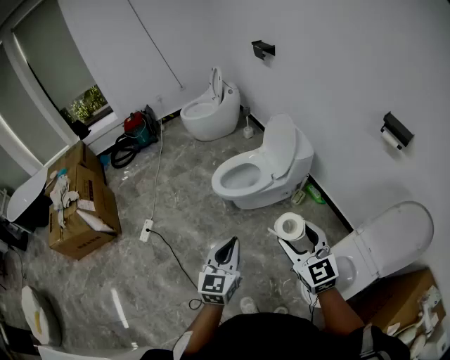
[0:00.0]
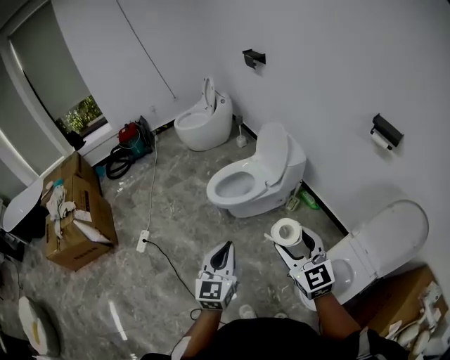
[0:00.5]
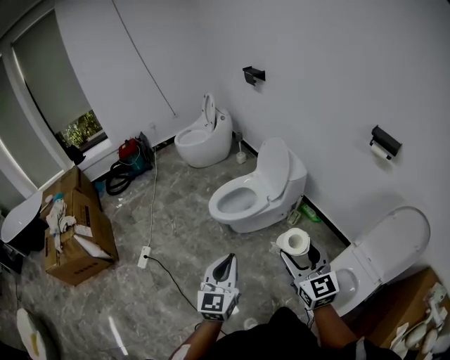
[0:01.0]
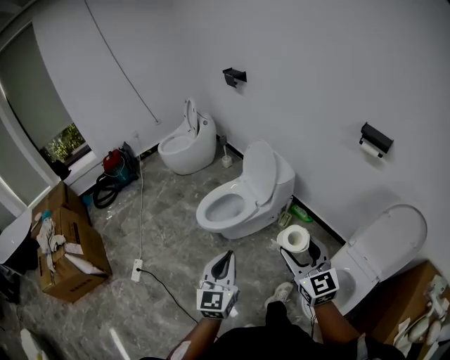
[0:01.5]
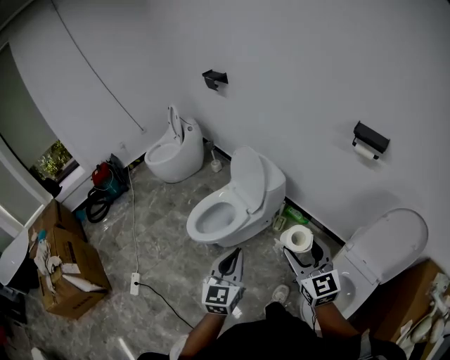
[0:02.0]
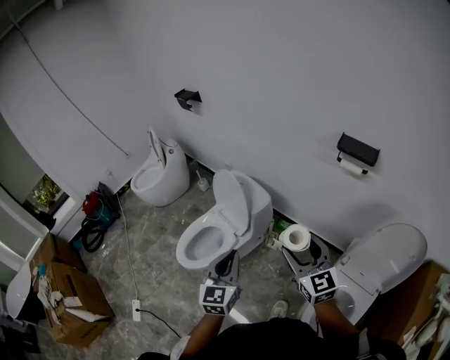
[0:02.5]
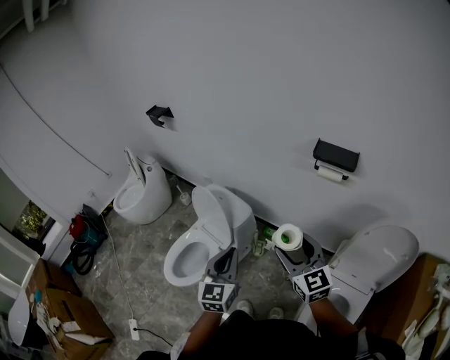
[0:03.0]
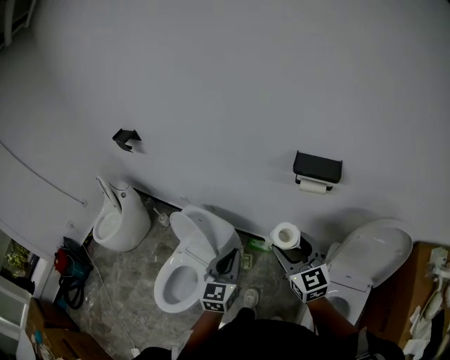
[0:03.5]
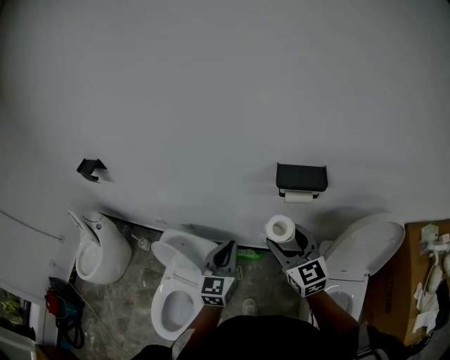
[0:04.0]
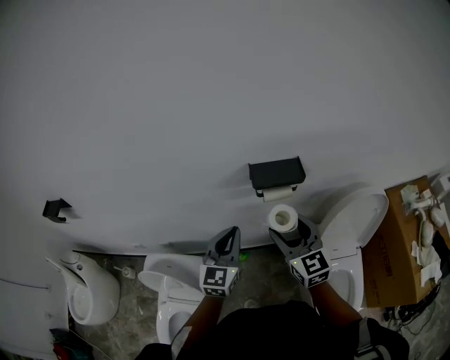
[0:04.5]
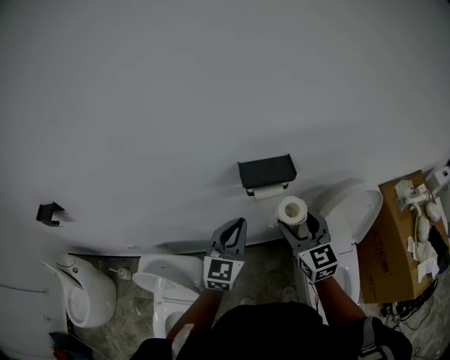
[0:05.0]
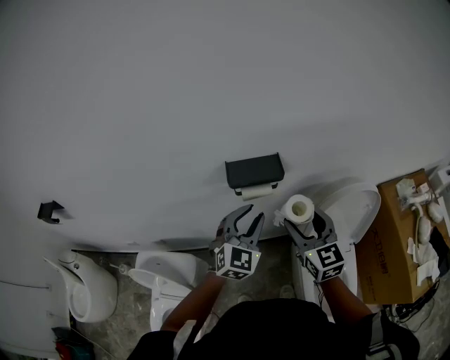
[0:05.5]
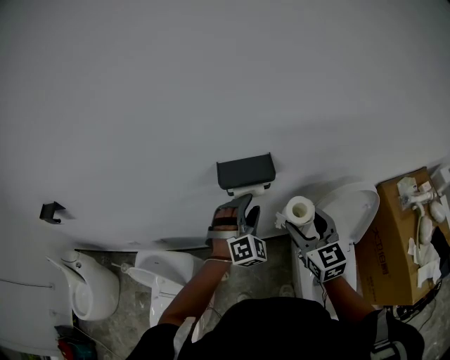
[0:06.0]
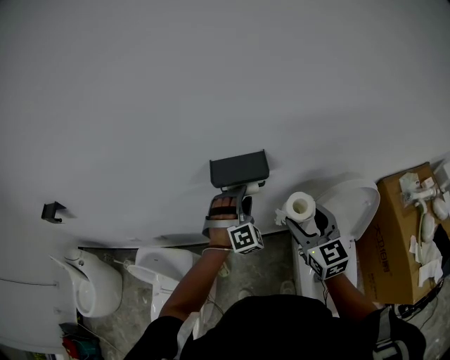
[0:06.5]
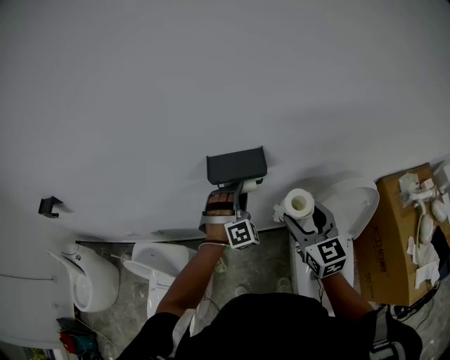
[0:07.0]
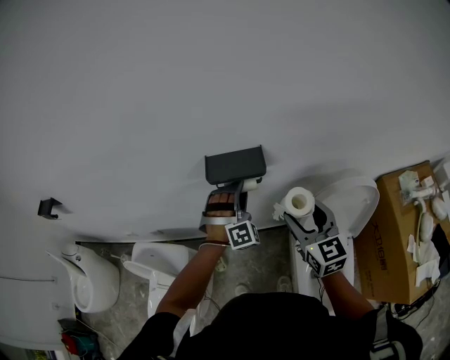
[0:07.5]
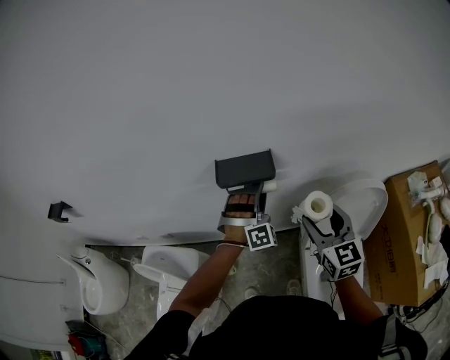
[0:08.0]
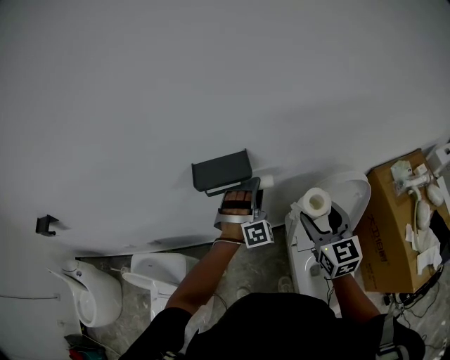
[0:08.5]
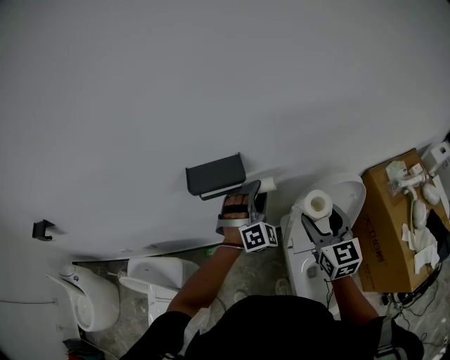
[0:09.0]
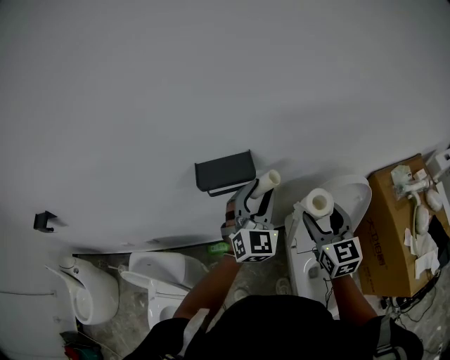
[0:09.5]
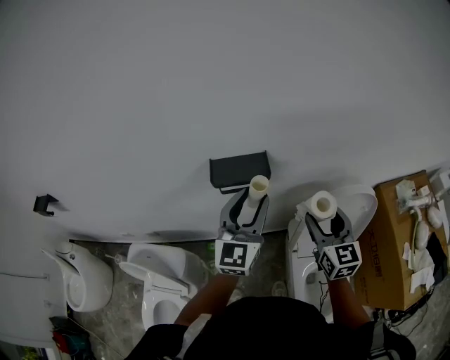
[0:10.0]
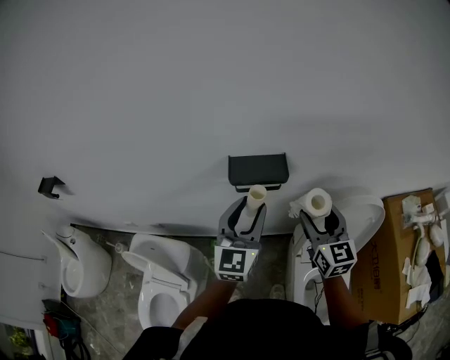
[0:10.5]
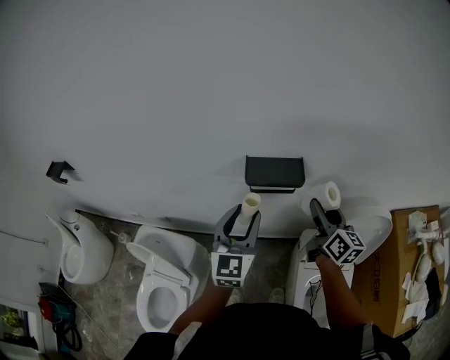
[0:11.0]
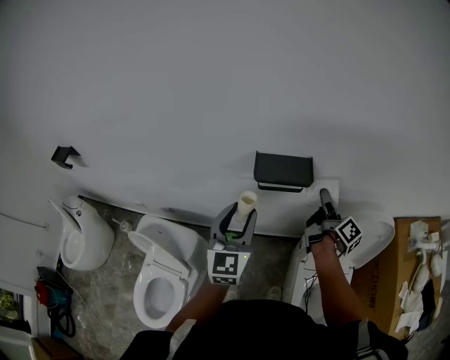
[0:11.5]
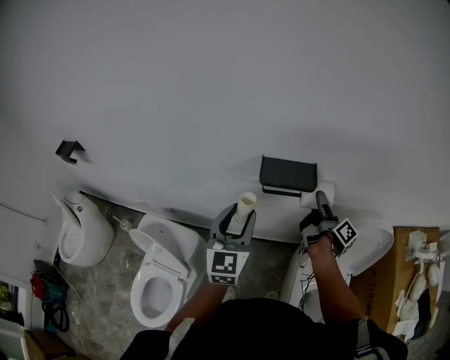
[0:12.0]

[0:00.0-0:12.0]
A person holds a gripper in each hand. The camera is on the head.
0:00.0 to 0:02.0: The left gripper travels forward and to the right by about 20 cm. The right gripper is displaced to the right and forward by some 15 cm, and changes its angle by some 20 degrees.
0:02.0 to 0:04.0: Both grippers are carried some 50 cm. The left gripper changes its angle by some 40 degrees. The right gripper turns by some 30 degrees.
0:04.0 to 0:06.0: The right gripper shifts roughly 20 cm to the right, and swivels about 20 degrees. Meanwhile the left gripper heads to the right and forward, covering roughly 25 cm, rotates around the line of its fingers by roughly 70 degrees, clockwise from behind, and opens its fingers.
0:06.0 to 0:08.0: The right gripper shifts some 5 cm to the right. Meanwhile the left gripper changes place by some 5 cm.
0:08.0 to 0:10.0: The left gripper is displaced upward and backward by some 15 cm, and rotates around the line of its fingers by roughly 70 degrees, counterclockwise from behind.
0:10.0 to 0:12.0: The right gripper moves forward, to the left and downward, some 15 cm, and rotates around the line of its fingers by about 80 degrees, clockwise from behind; the left gripper moves to the left, about 15 cm, and turns by some 20 degrees.

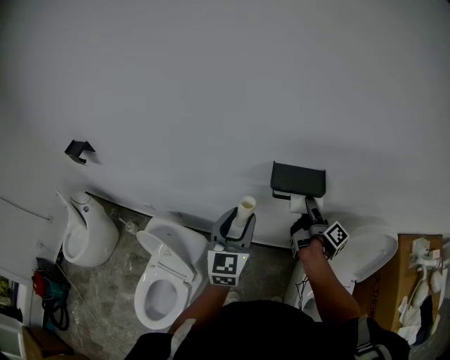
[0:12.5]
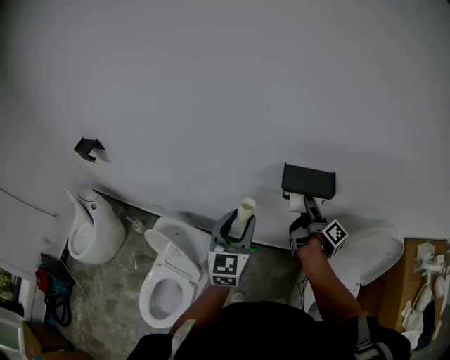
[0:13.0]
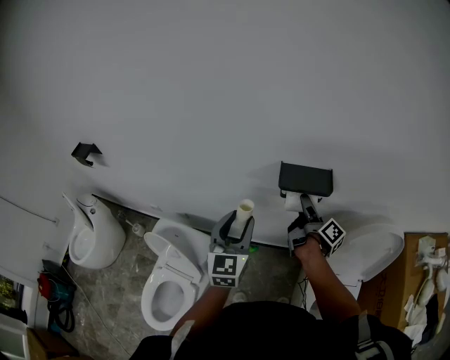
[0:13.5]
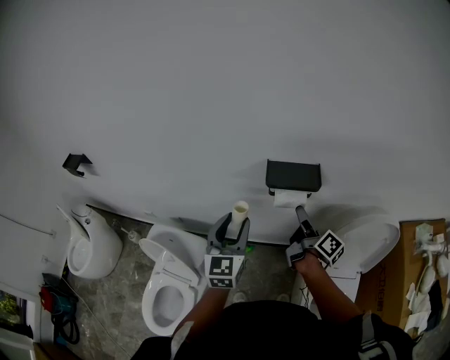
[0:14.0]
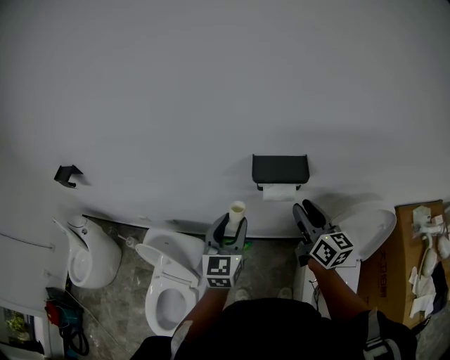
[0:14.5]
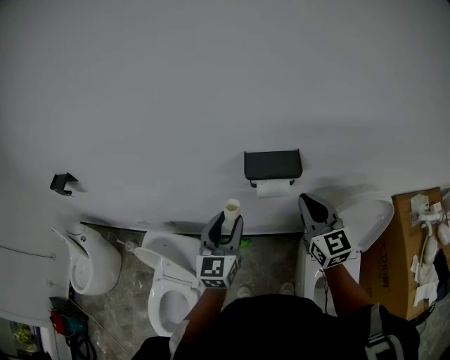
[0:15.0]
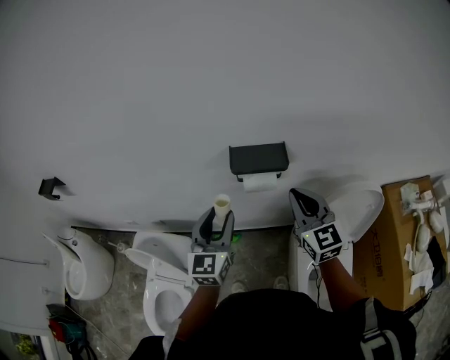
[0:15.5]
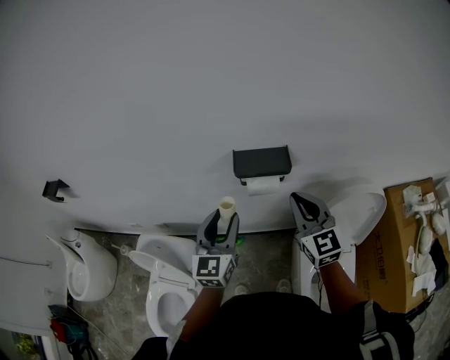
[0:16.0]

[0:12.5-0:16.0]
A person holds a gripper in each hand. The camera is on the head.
0:12.5 to 0:14.5: The right gripper goes about 10 cm backward and upward, and twists about 60 degrees counterclockwise, seen from behind.
0:14.5 to 0:16.0: The right gripper swivels about 40 degrees, and closes up.

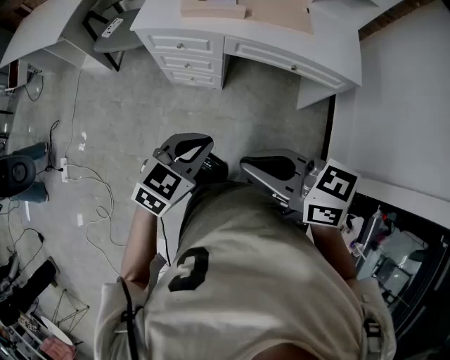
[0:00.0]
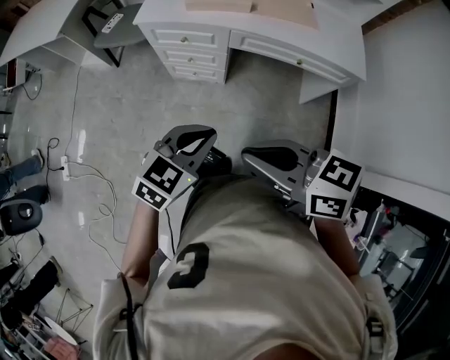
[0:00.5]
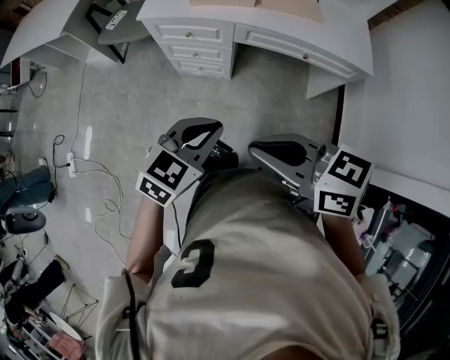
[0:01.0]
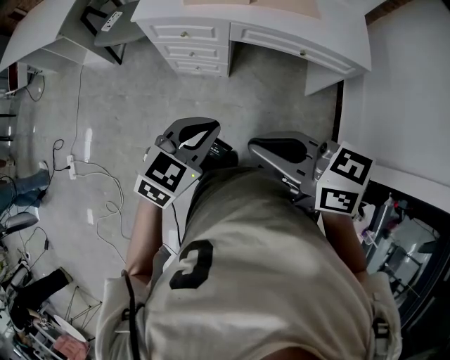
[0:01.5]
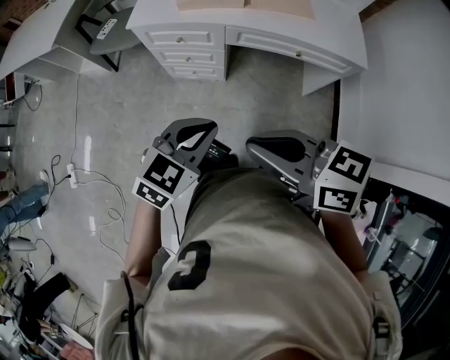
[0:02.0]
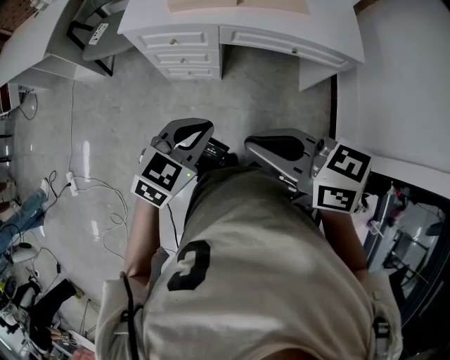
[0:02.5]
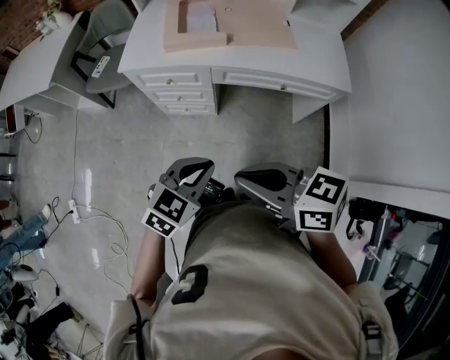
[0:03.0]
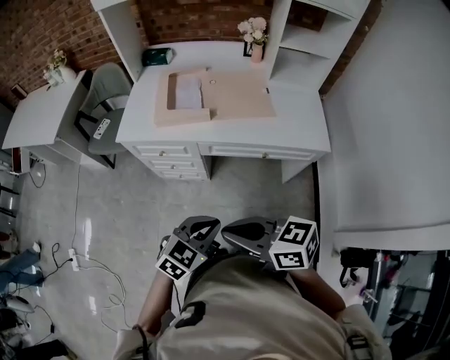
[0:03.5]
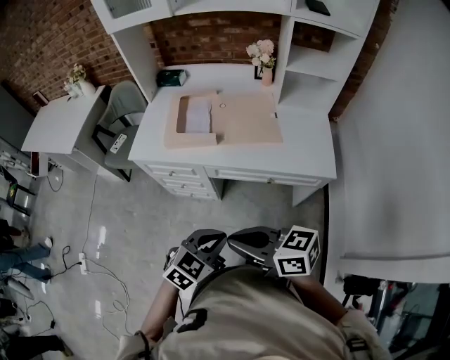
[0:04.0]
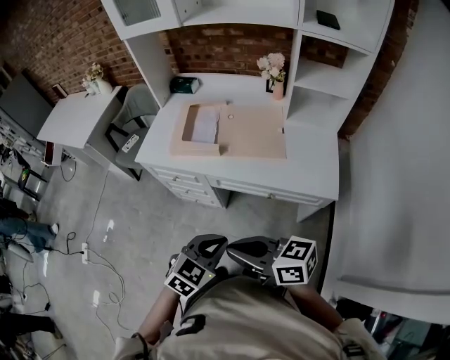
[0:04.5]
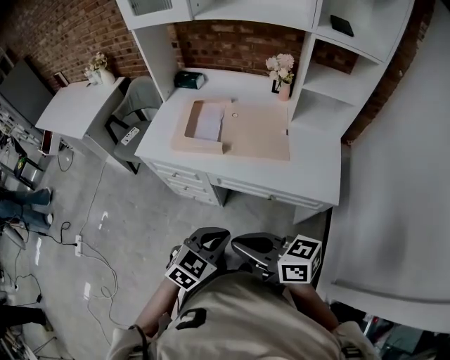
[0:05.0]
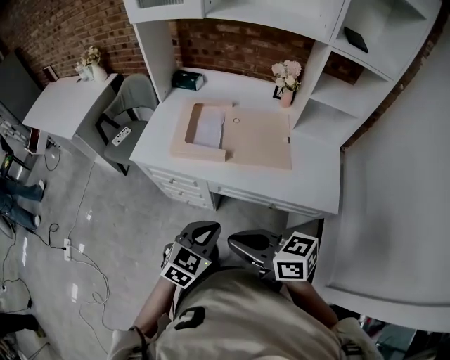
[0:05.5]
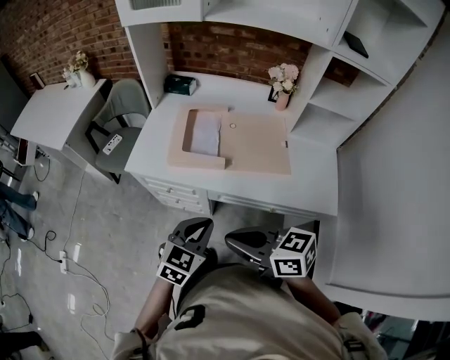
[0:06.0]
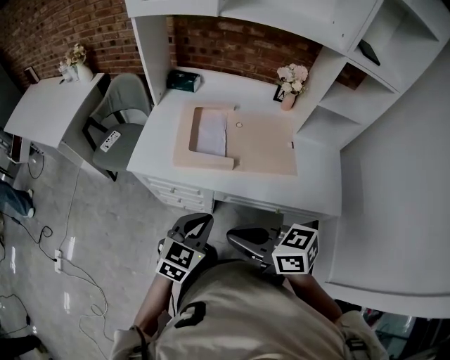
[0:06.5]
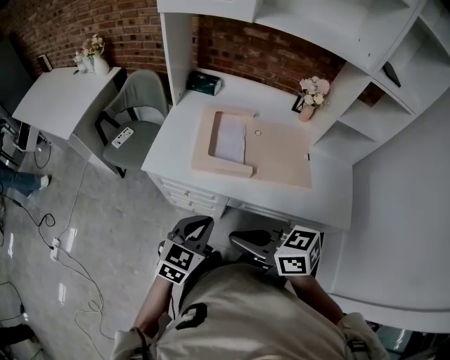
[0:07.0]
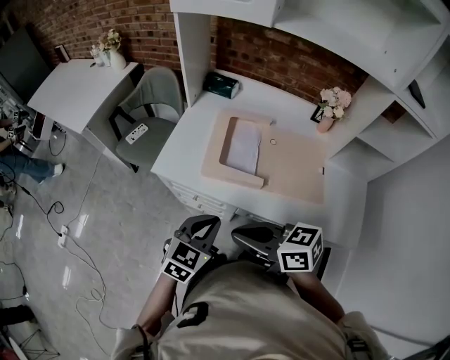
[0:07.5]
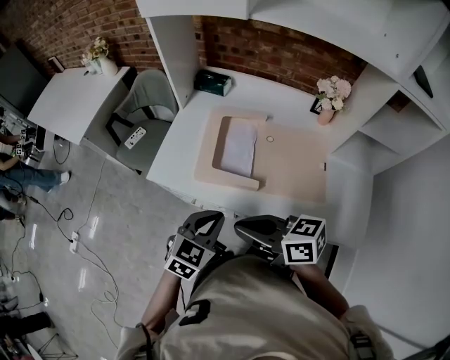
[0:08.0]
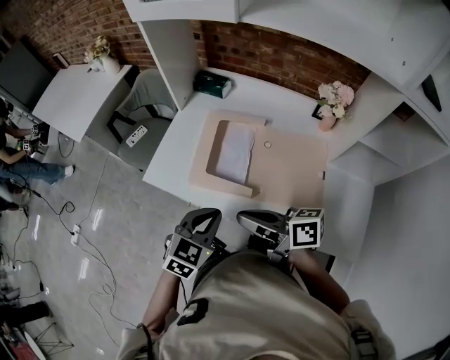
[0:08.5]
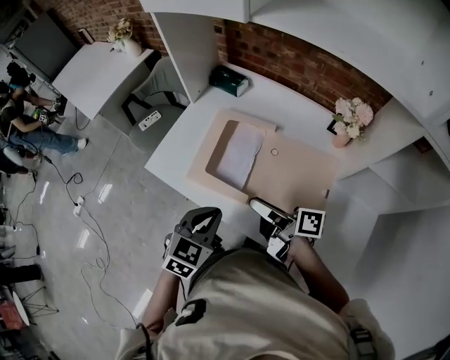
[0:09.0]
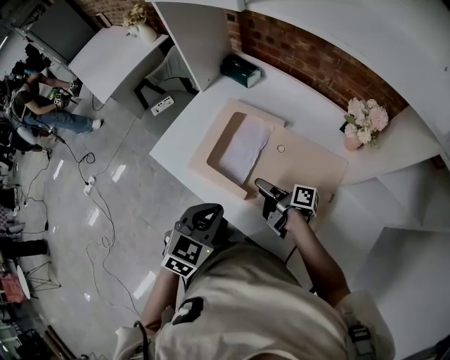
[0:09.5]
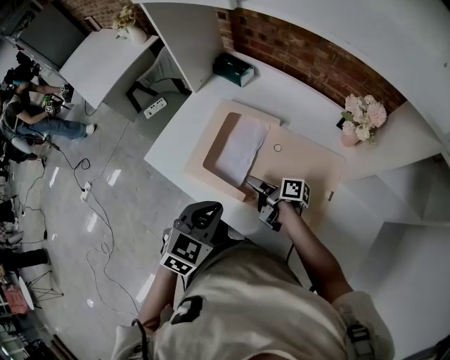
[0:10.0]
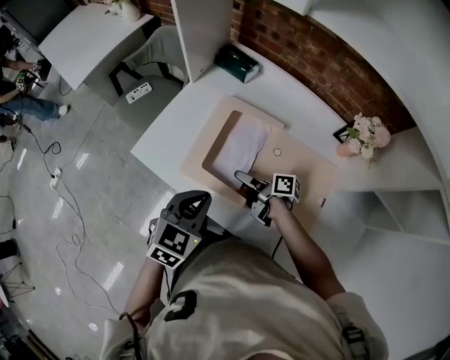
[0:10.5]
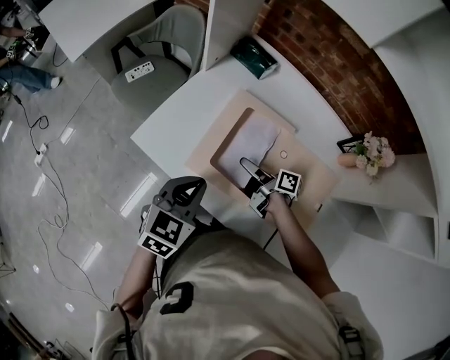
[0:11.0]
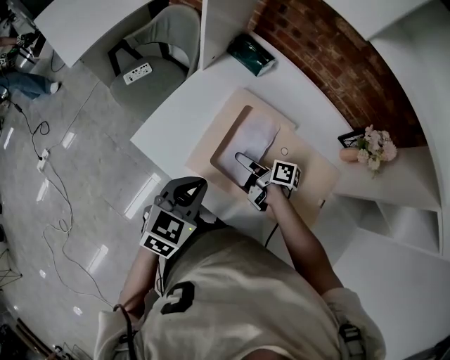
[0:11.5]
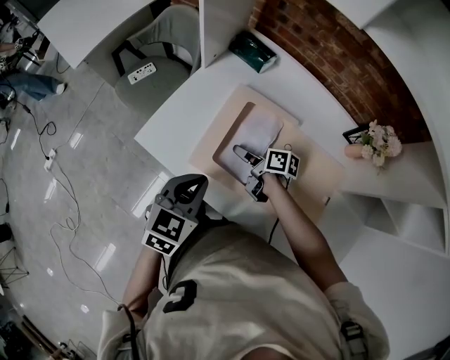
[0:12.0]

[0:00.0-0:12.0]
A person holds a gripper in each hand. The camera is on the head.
0:00.0 to 0:02.0: The grippers move only a little.
0:02.0 to 0:04.0: Both grippers move to the right and forward, some 15 cm.
0:04.0 to 0:06.0: The grippers both shift forward by about 15 cm.
0:06.0 to 0:08.0: Both grippers move forward, roughly 15 cm.
0:08.0 to 0:10.0: The right gripper shifts about 30 cm downward, forward and to the right, rotates around the line of its fingers by some 50 degrees, clockwise from behind, and opens up; the left gripper travels to the right by some 10 cm.
0:10.0 to 0:12.0: Both grippers travel together forward and to the left, roughly 10 cm. The right gripper closes up.
